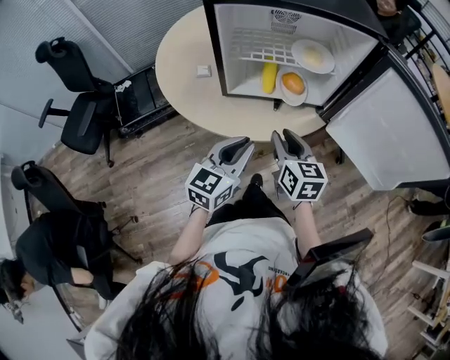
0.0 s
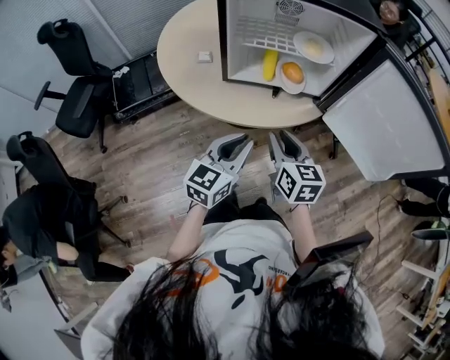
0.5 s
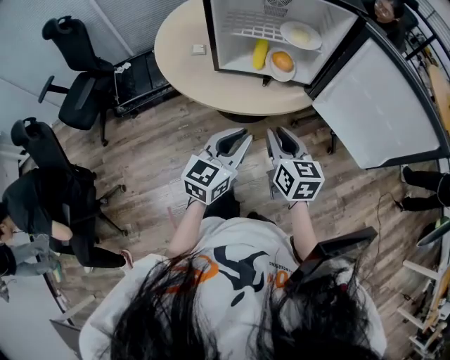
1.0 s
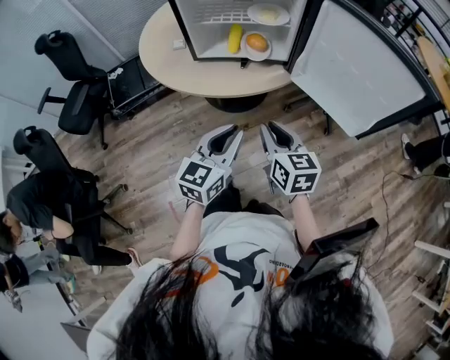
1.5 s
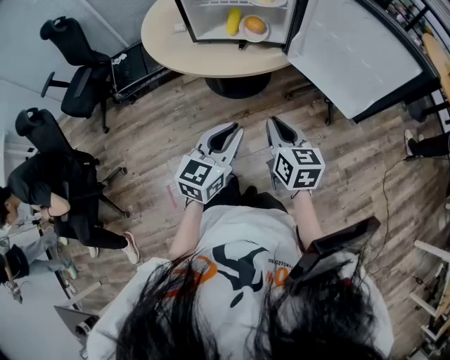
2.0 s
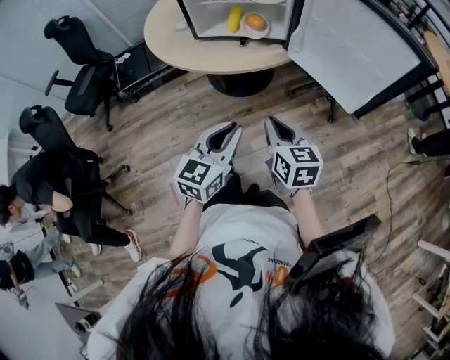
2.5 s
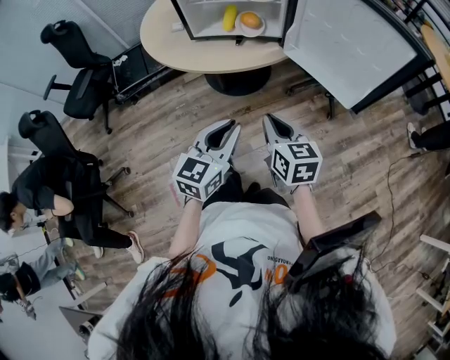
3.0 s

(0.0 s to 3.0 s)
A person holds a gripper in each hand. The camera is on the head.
0.0 s - 1.5 s: Both grippers travel together backward and to the right, roughly 15 cm.
1.5 s - 3.0 s: Both grippers travel together backward, approximately 5 cm.

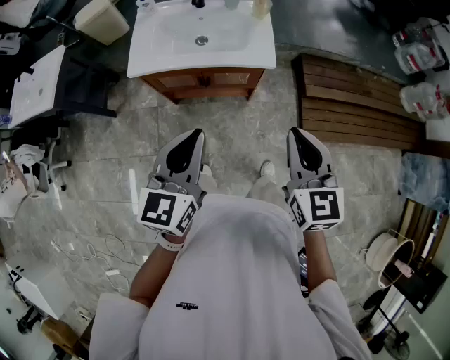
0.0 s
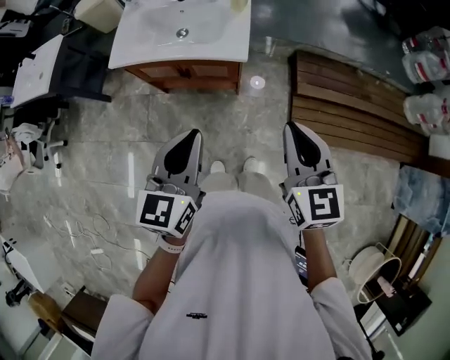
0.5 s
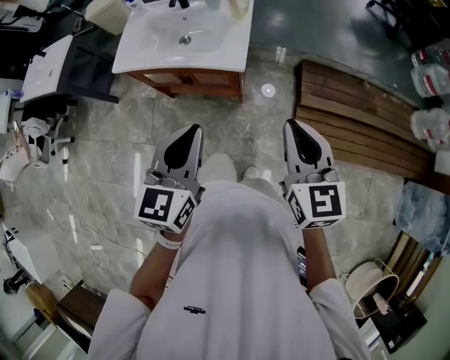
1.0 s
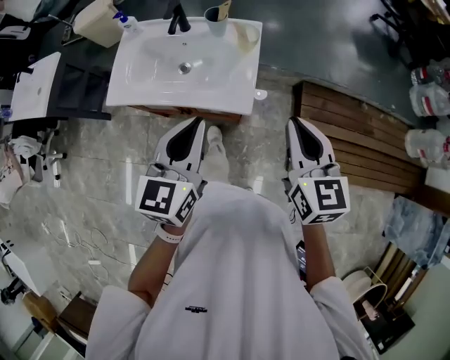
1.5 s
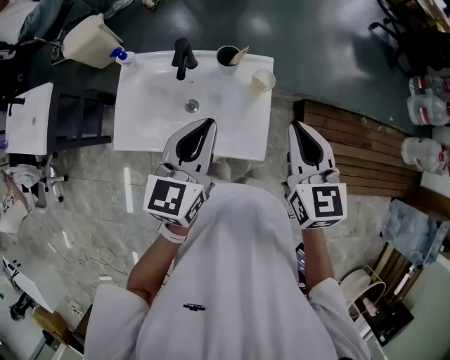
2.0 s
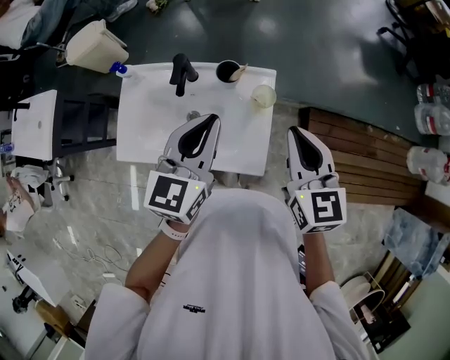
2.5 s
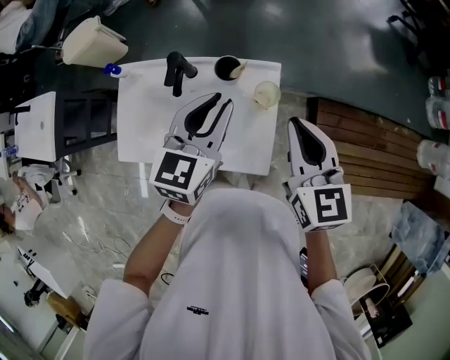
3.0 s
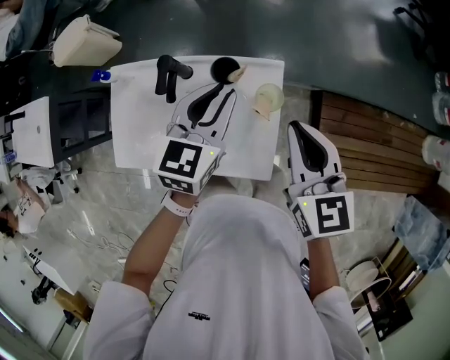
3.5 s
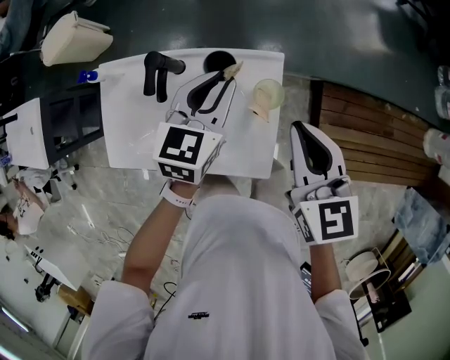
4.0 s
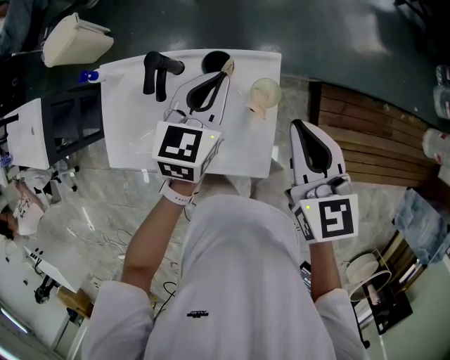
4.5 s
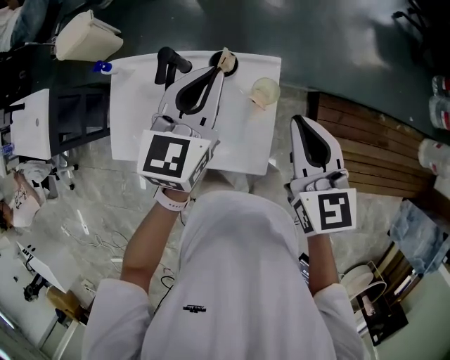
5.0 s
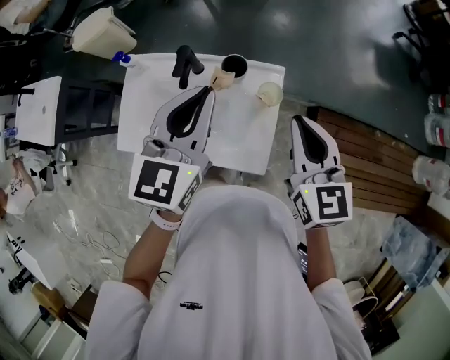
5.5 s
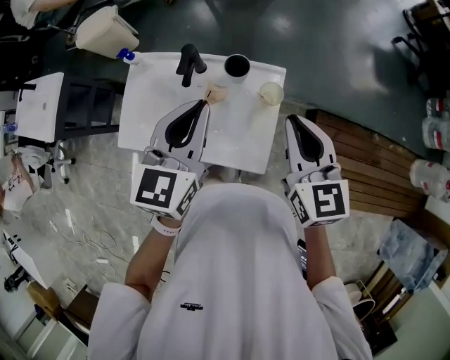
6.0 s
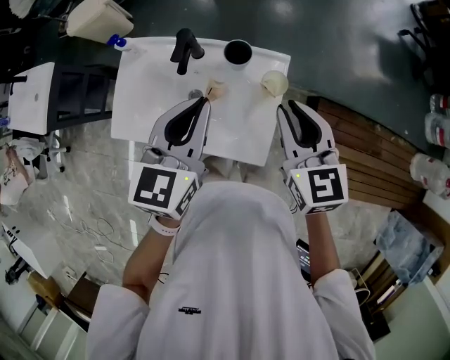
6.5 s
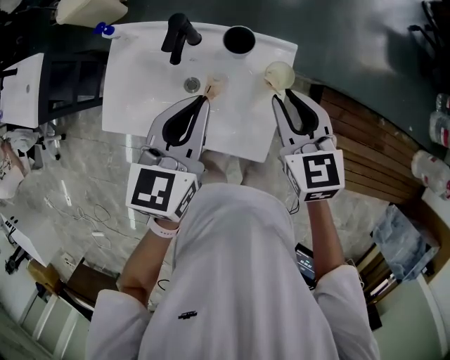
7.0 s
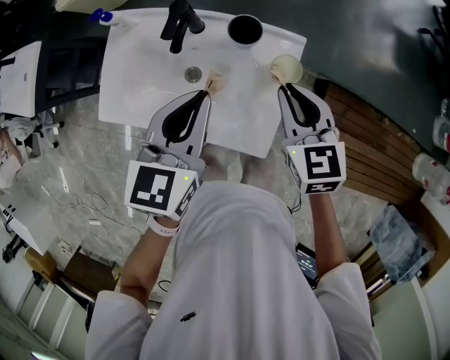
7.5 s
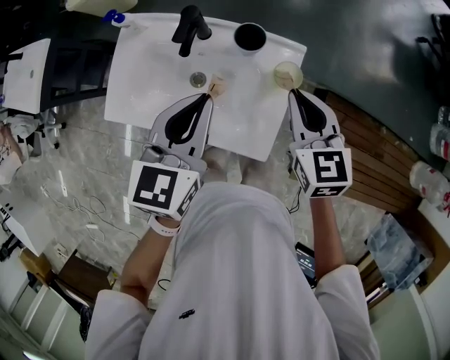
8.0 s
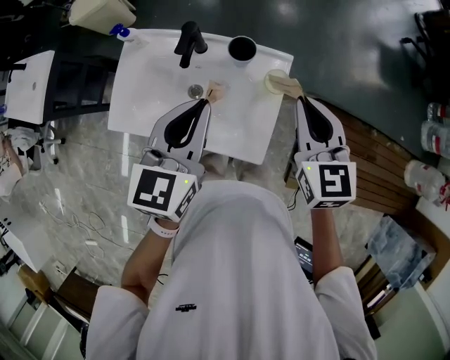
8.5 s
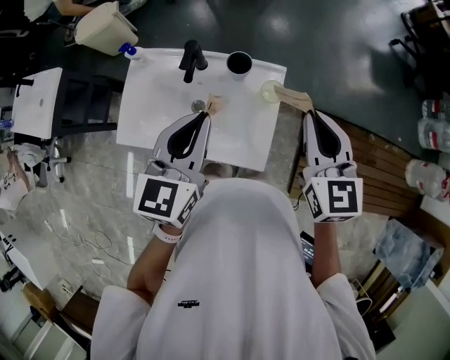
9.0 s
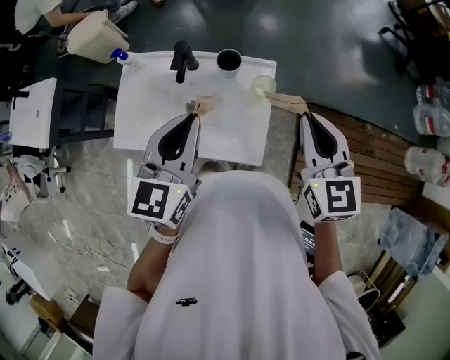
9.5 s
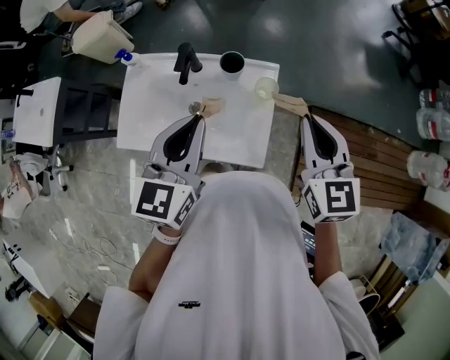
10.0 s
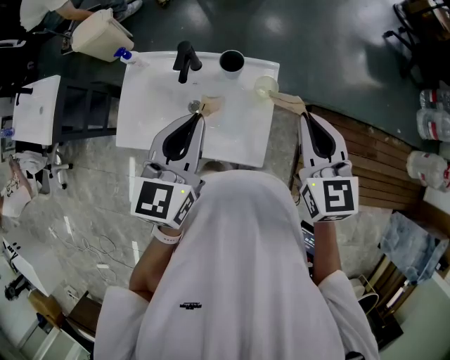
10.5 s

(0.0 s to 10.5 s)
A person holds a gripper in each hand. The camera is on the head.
0.0 s - 2.0 s: The pair of grippers is taken forward, approximately 40 cm.
2.0 s - 4.0 s: The left gripper heads forward and downward, covering some 25 cm, while the right gripper heads forward and downward, covering roughly 15 cm.
4.0 s - 6.5 s: The left gripper shifts roughly 20 cm backward, upward and to the left.
6.5 s - 8.5 s: The right gripper reaches some 10 cm downward, then returns.
8.5 s - 10.5 s: The right gripper heads upward and backward, covering roughly 5 cm; the left gripper moves some 5 cm.

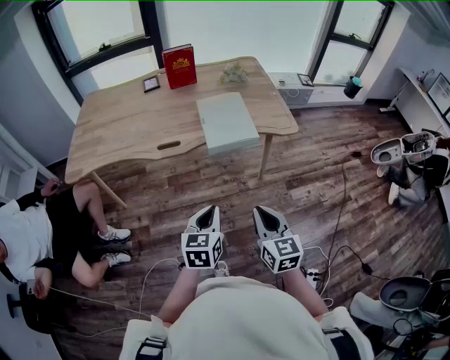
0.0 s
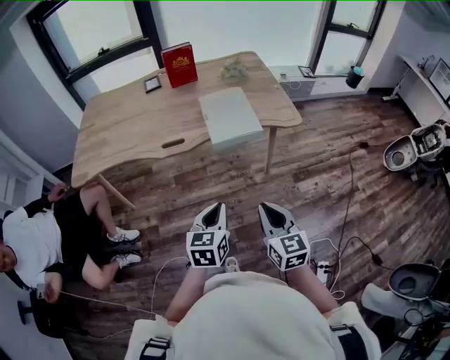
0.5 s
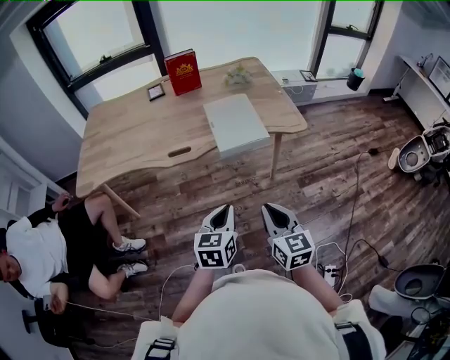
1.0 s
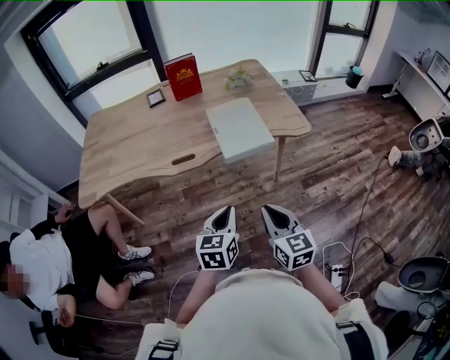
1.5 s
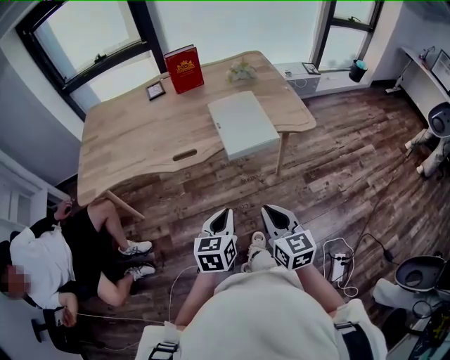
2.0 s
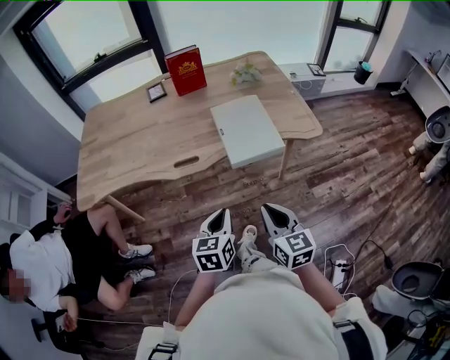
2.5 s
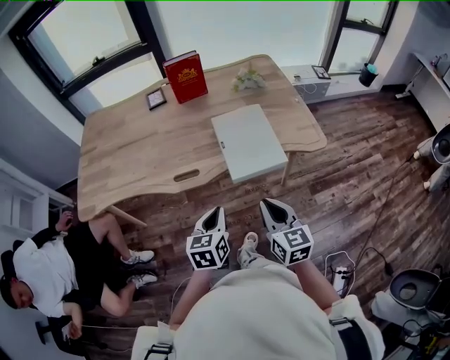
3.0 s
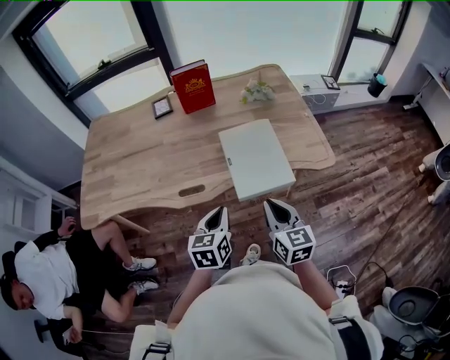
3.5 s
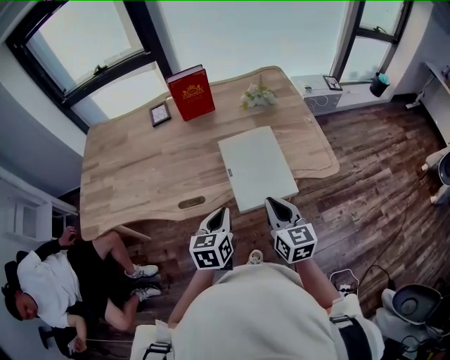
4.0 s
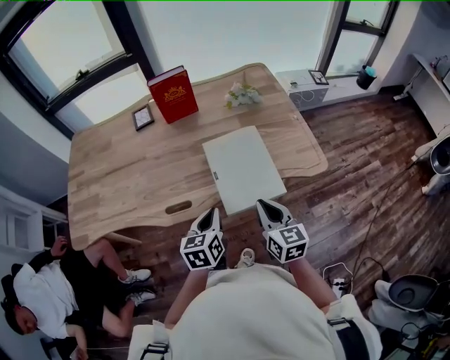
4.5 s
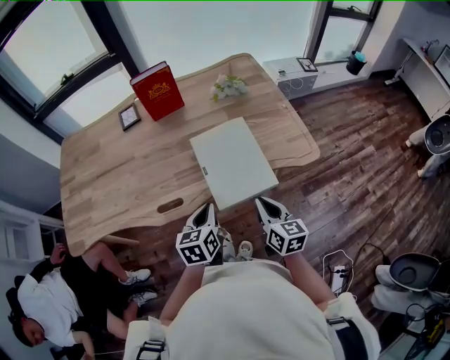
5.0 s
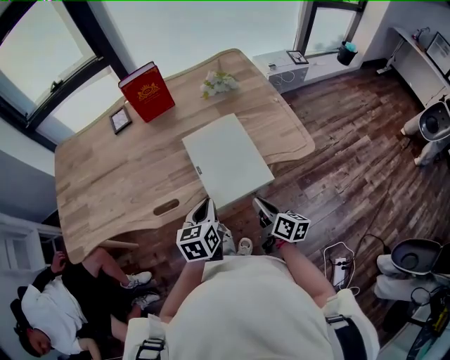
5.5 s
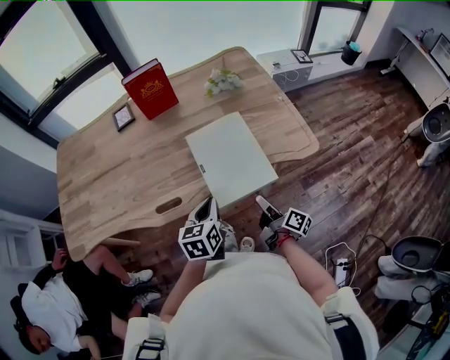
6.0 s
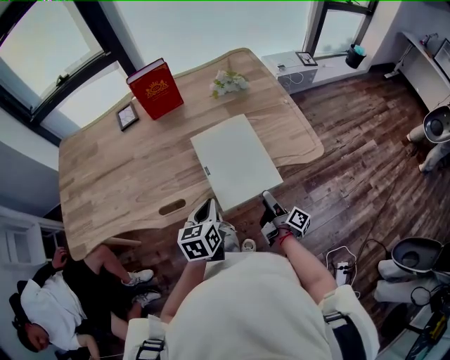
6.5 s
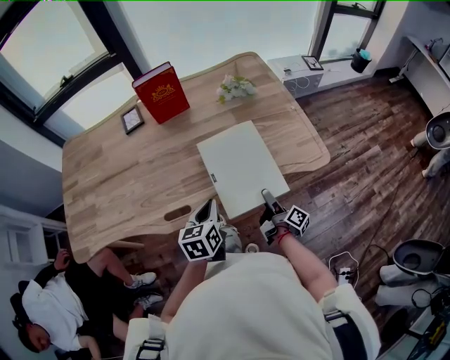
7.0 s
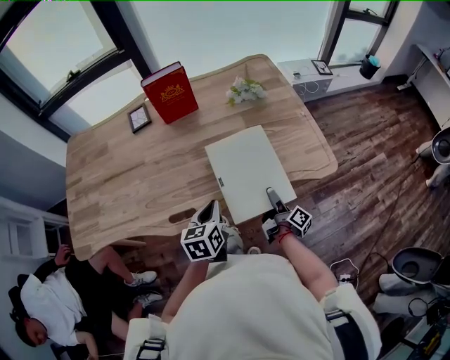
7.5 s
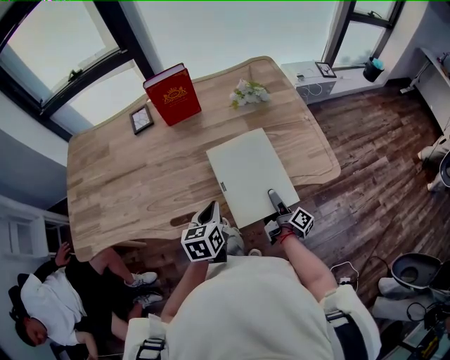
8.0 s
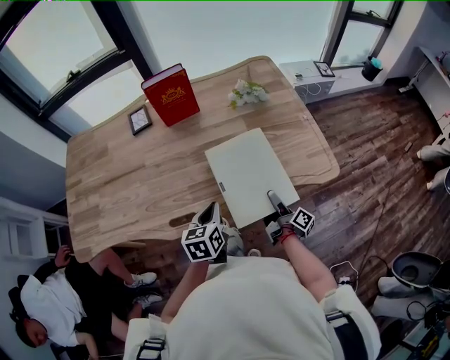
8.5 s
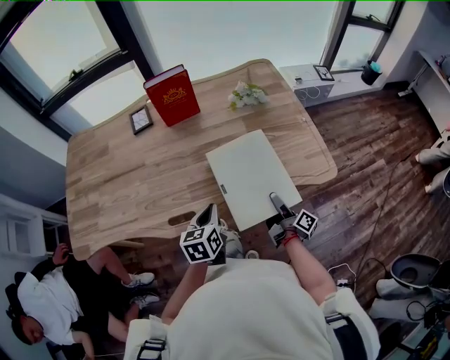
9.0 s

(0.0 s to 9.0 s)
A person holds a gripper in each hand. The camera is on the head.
0.0 s - 2.0 s: The left gripper changes place by some 5 cm. The right gripper heads to the left, covering approximately 5 cm.
2.0 s - 4.5 s: Both grippers travel together forward, approximately 25 cm.
4.5 s - 7.0 s: The left gripper travels forward by about 5 cm; the right gripper heads downward, covering approximately 20 cm, rolls clockwise, seen from behind, by roughly 70 degrees, and opens up.
7.0 s - 9.0 s: The grippers move only a little.

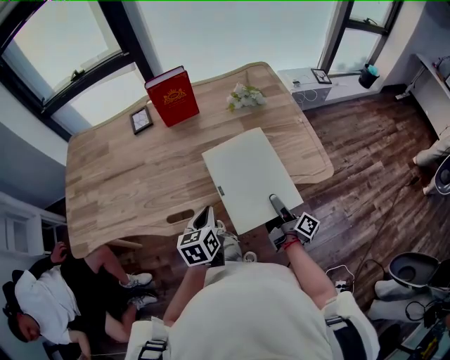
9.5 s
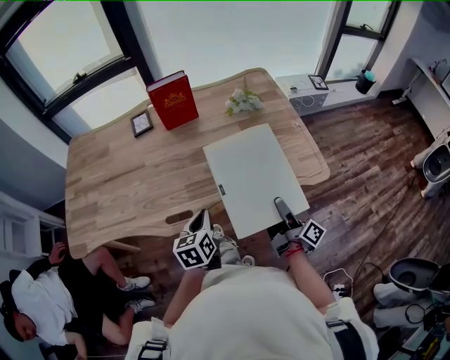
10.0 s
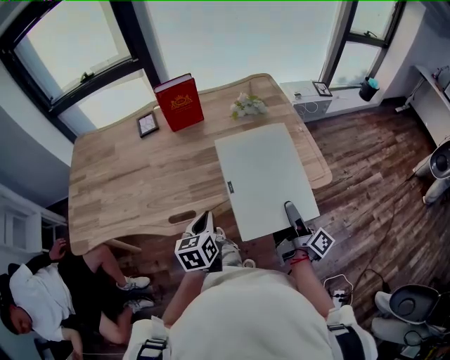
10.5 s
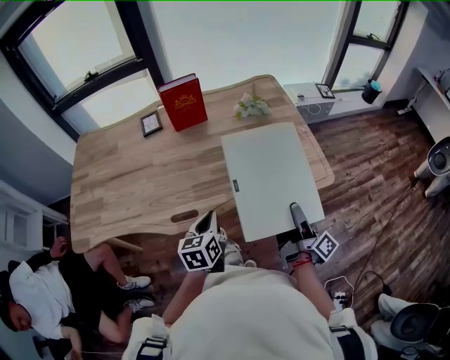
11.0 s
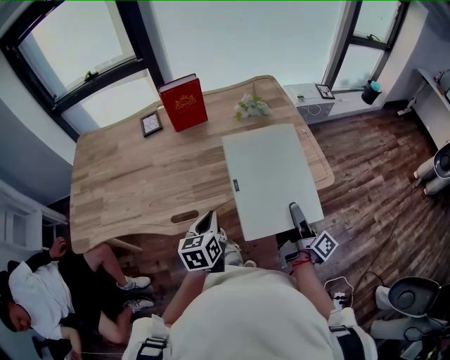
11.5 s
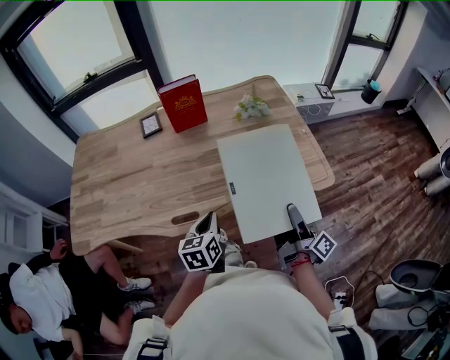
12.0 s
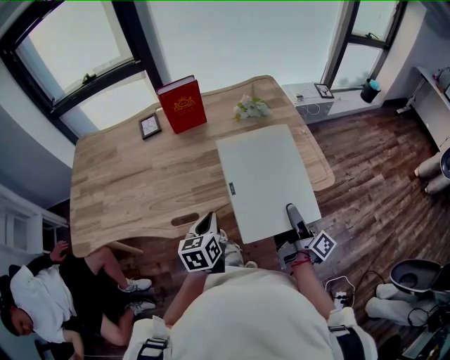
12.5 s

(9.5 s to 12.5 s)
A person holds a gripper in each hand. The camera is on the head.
9.5 s - 11.0 s: The right gripper moves upward and backward, about 15 cm.
11.0 s - 12.5 s: The grippers make only small movements.

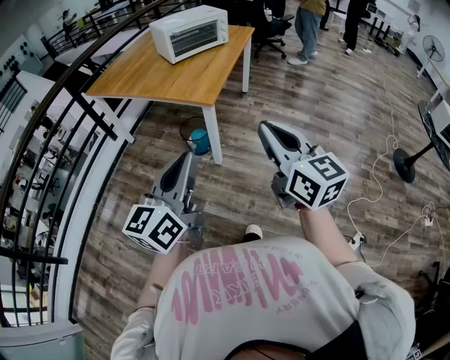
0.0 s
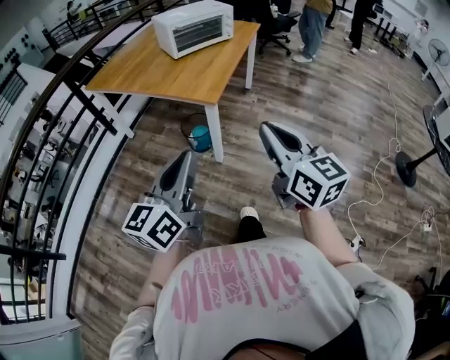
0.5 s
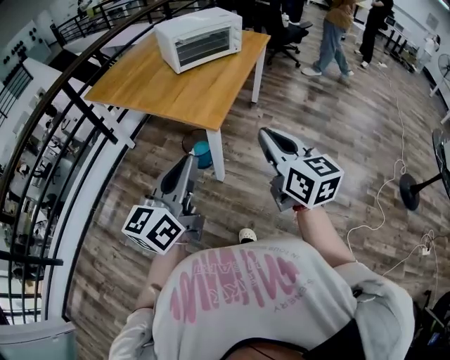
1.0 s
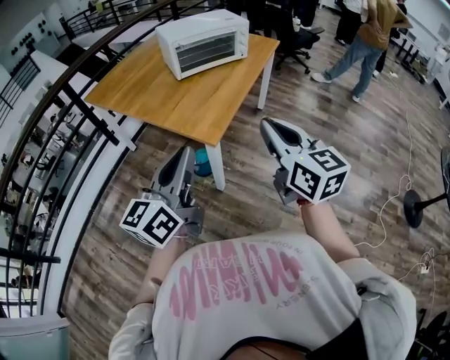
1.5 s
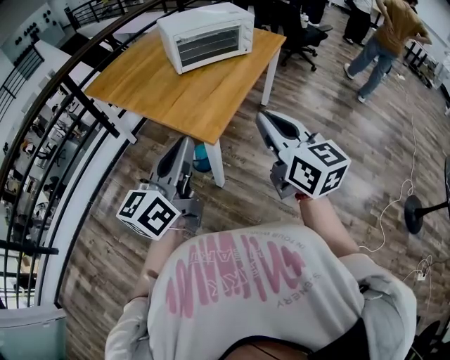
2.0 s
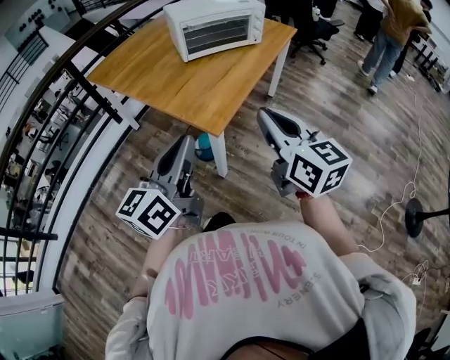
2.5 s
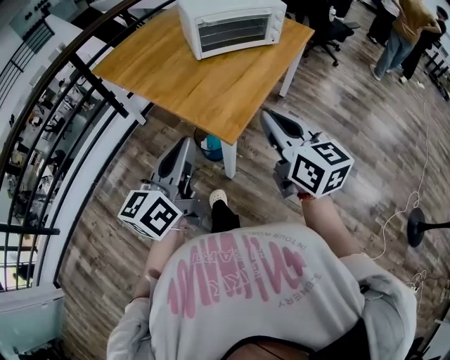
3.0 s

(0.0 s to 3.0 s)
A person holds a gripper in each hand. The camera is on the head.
0.0 s - 1.5 s: Both grippers travel together forward, approximately 25 cm.
1.5 s - 3.0 s: The grippers both shift forward by some 10 cm.
